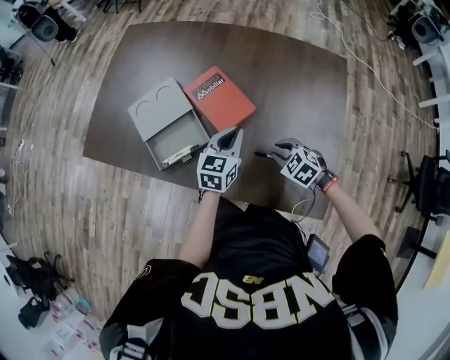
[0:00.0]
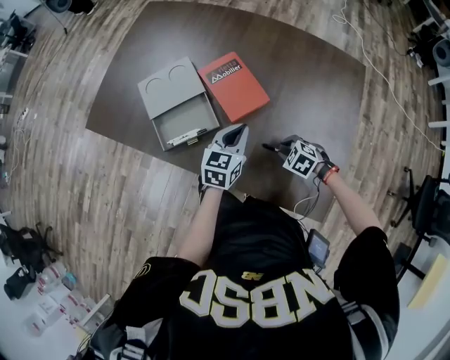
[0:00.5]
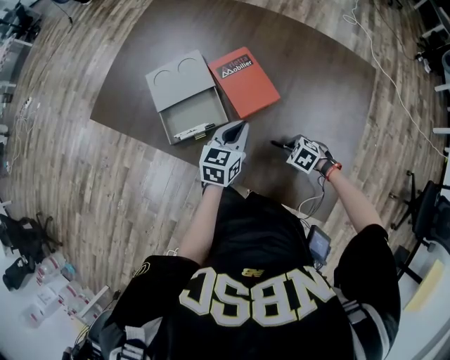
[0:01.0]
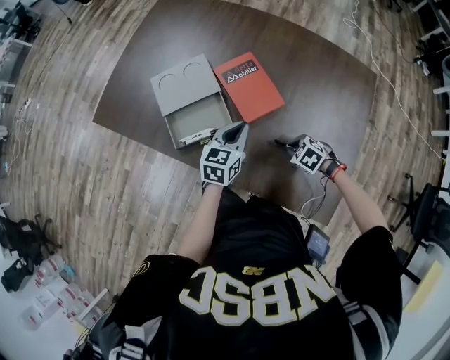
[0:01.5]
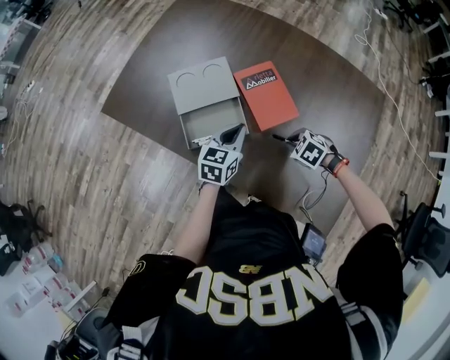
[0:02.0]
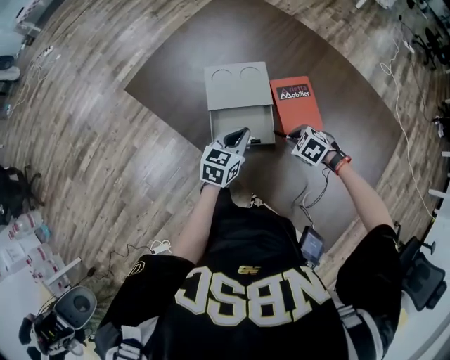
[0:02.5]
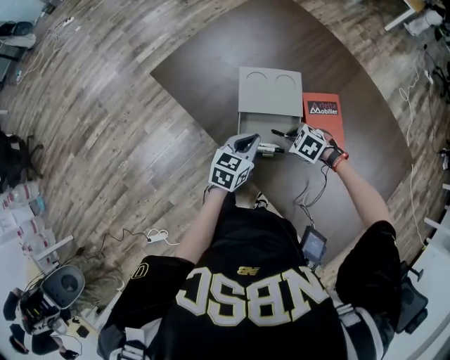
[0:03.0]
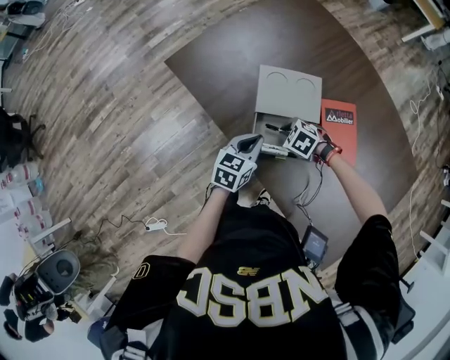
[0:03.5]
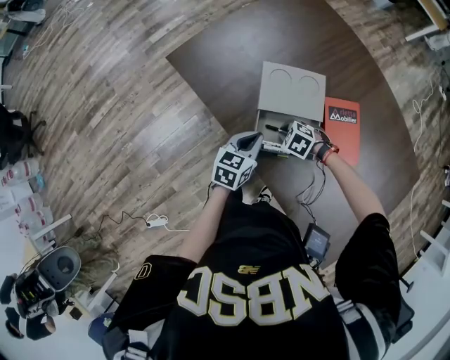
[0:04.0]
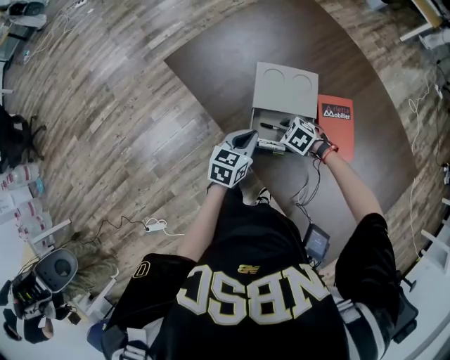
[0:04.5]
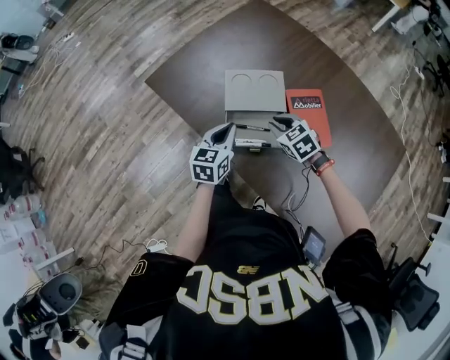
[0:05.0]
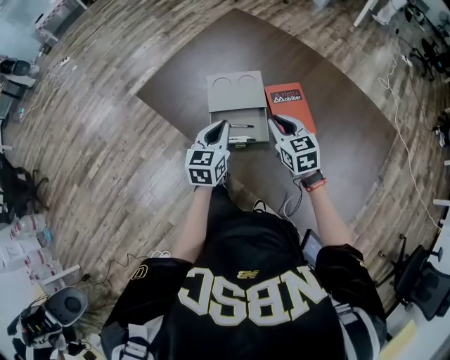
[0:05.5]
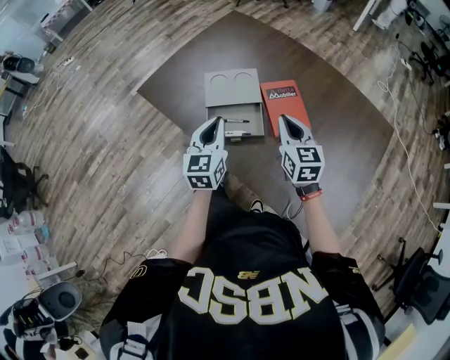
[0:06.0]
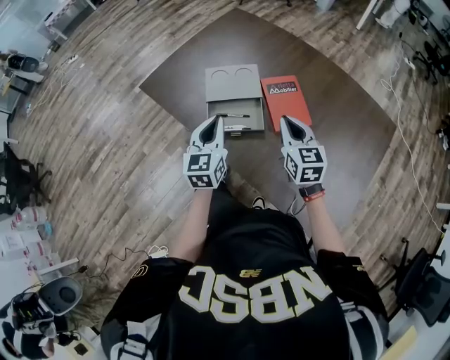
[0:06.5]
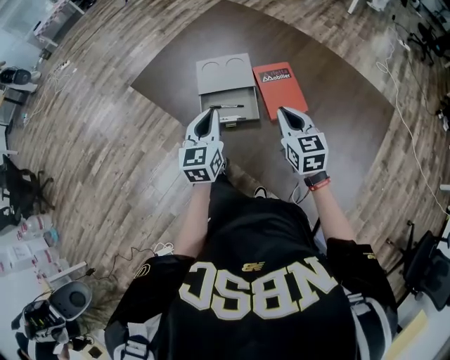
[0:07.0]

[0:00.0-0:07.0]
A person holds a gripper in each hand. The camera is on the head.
0:00.0 to 0:02.0: The right gripper goes downward and returns, about 10 cm each way, and changes its angle by some 20 degrees. Meanwhile the left gripper shifts by roughly 15 cm.
0:02.0 to 0:03.5: The left gripper changes place by some 20 cm; the right gripper shifts by some 30 cm, and turns by about 20 degrees.
0:03.5 to 0:05.0: The right gripper goes approximately 10 cm upward, and turns by about 40 degrees. Meanwhile the left gripper goes approximately 5 cm upward.
0:05.0 to 0:07.0: The left gripper is displaced upward and backward by about 15 cm. The right gripper heads upward, backward and to the right, covering approximately 20 cm, and rotates about 40 degrees.

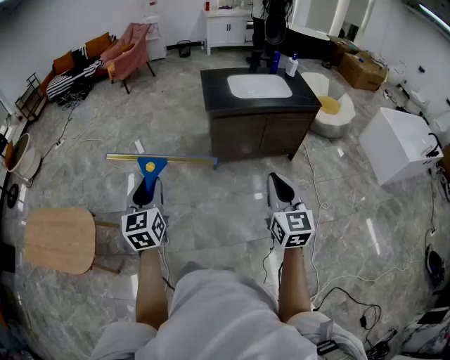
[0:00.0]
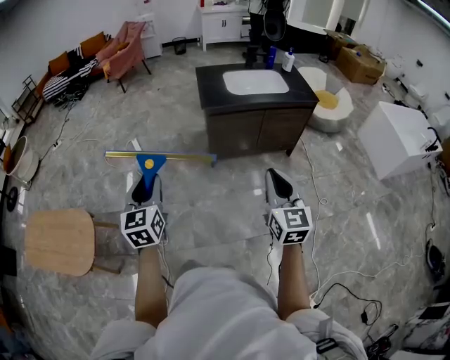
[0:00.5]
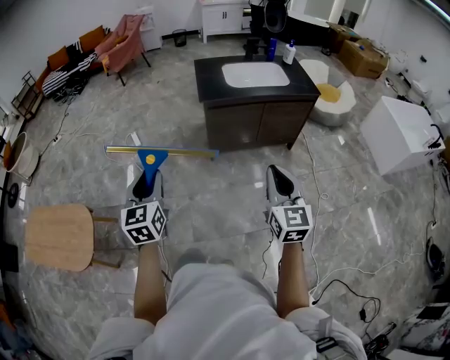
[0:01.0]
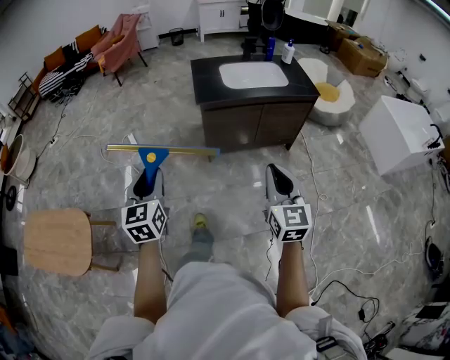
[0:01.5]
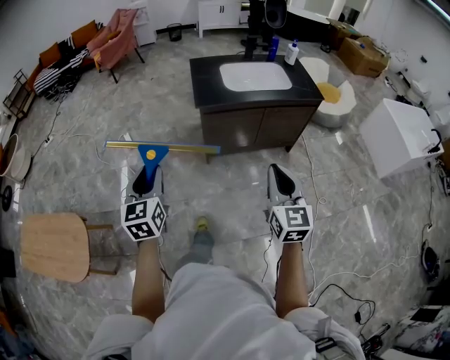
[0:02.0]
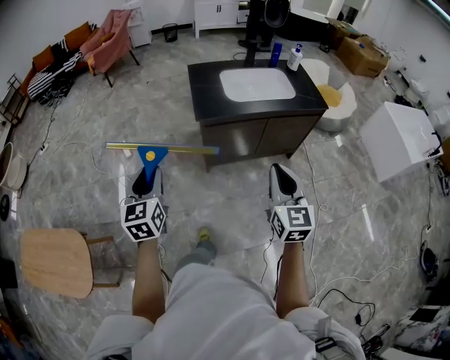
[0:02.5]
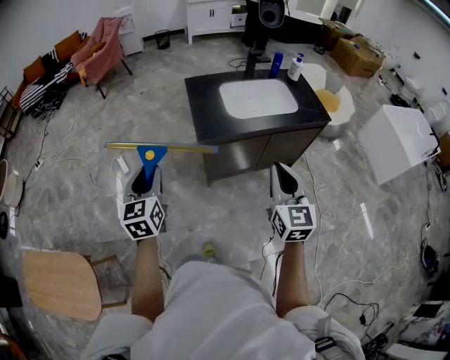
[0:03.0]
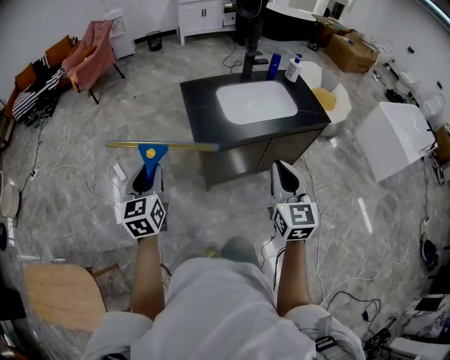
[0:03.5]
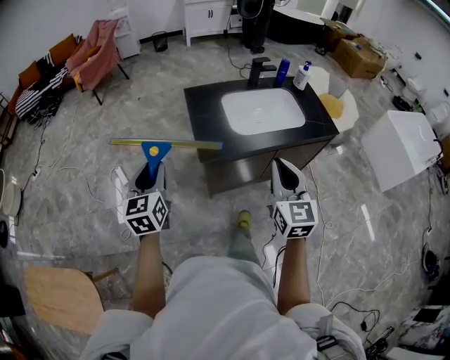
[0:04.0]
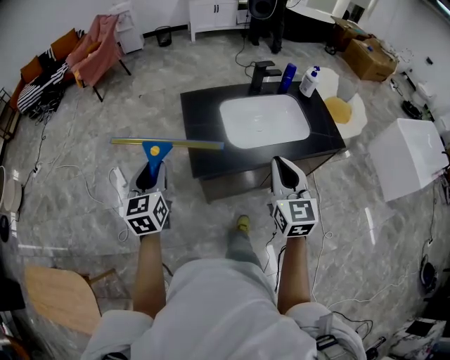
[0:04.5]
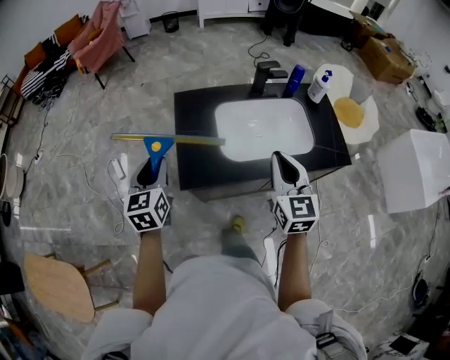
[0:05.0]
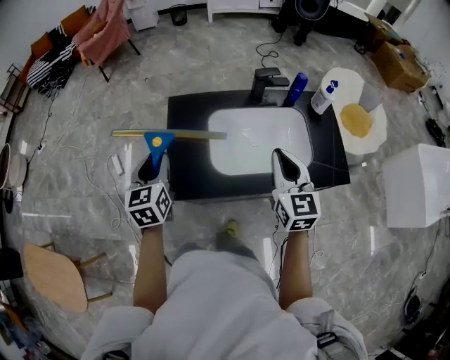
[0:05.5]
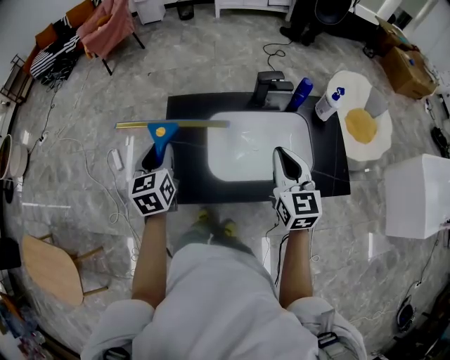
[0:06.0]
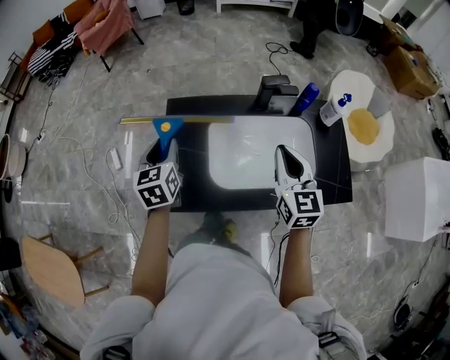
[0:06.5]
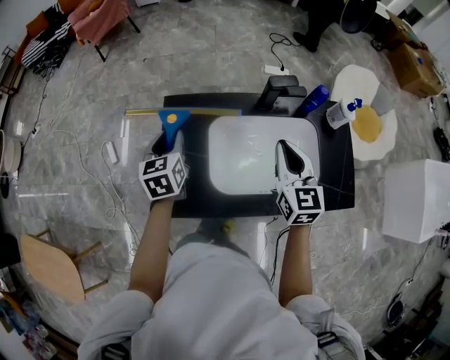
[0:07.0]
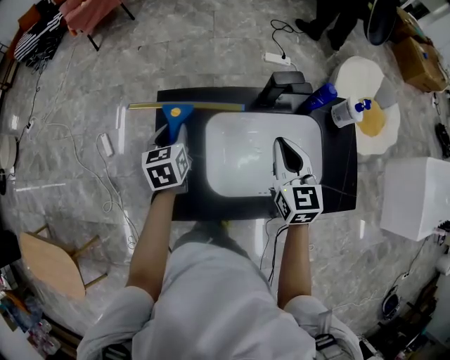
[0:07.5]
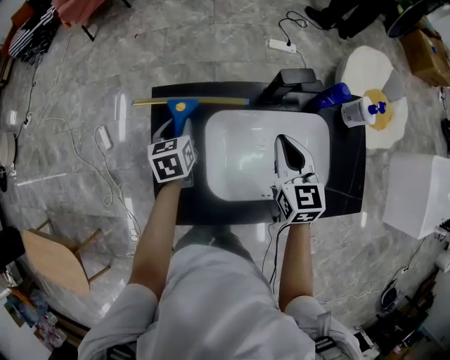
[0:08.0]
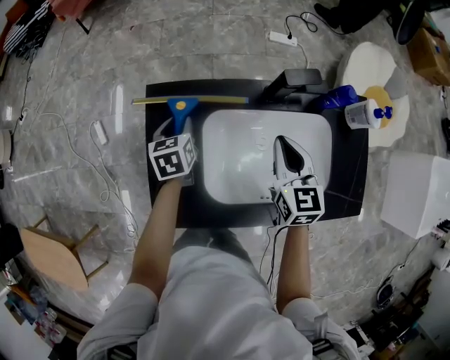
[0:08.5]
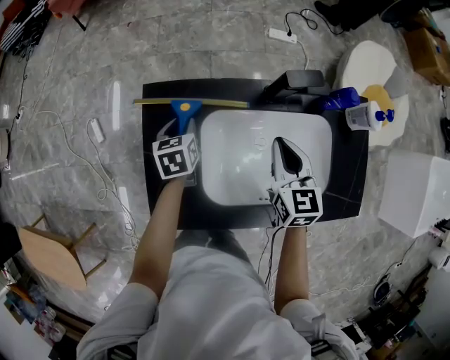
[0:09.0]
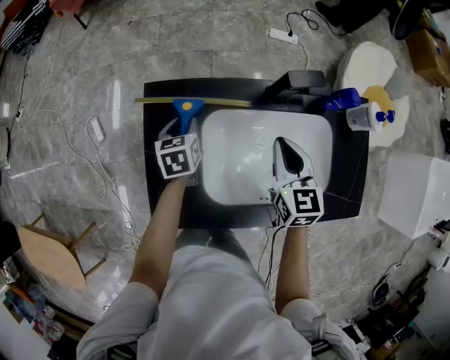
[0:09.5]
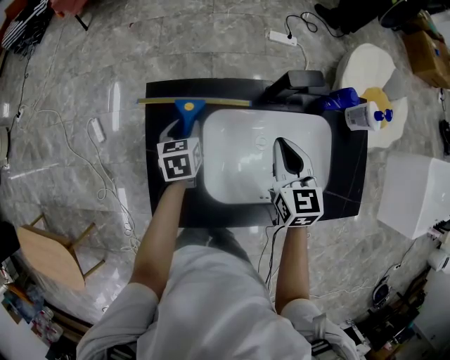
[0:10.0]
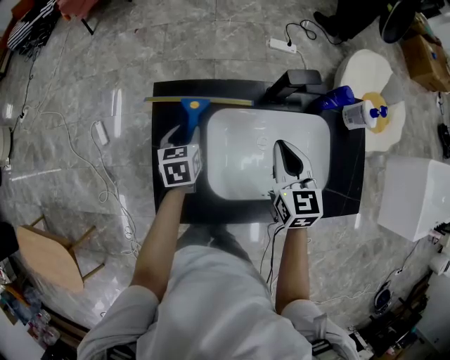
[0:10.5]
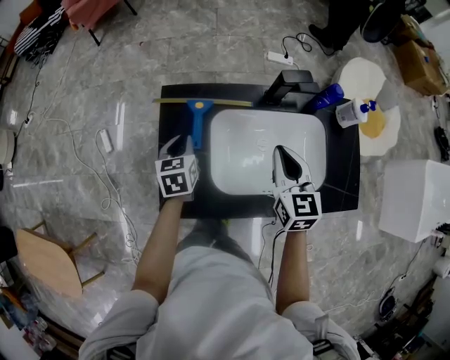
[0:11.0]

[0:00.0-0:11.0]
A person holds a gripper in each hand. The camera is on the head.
0:00.0 to 0:02.0: The two grippers go roughly 10 cm forward.
0:02.0 to 0:03.5: Both grippers travel together forward, some 20 cm.
0:03.5 to 0:05.5: The two grippers go about 30 cm forward and to the right.
0:05.5 to 0:07.5: Both grippers move forward and downward, approximately 20 cm.
0:07.5 to 0:09.0: The left gripper shifts approximately 10 cm downward. Meanwhile the right gripper goes approximately 5 cm downward.
0:09.0 to 0:11.0: Both grippers move backward and upward, some 10 cm. The left gripper closes its fingers.

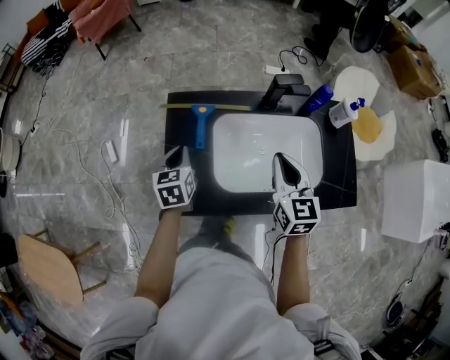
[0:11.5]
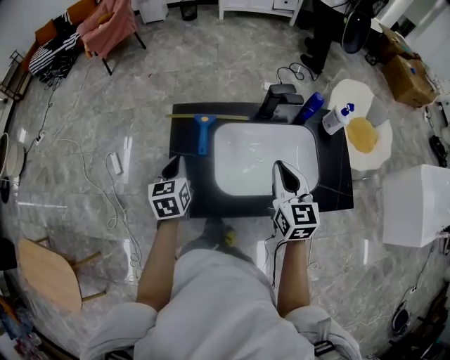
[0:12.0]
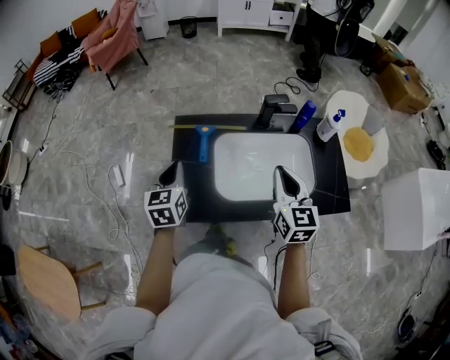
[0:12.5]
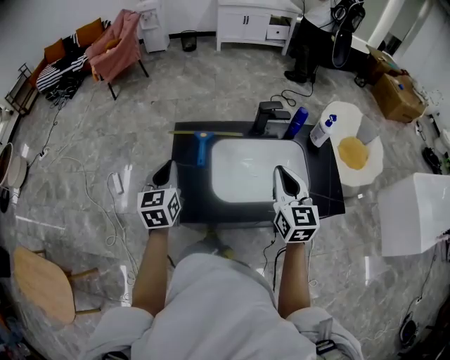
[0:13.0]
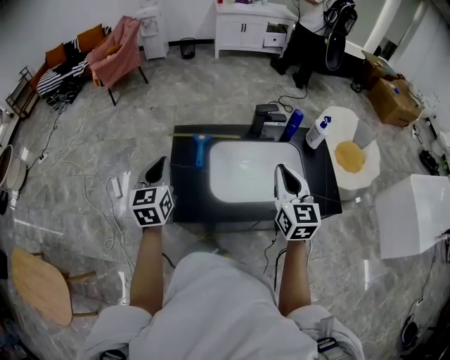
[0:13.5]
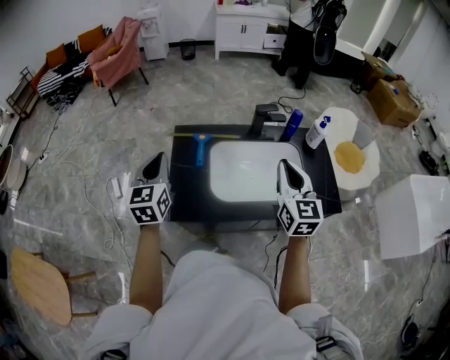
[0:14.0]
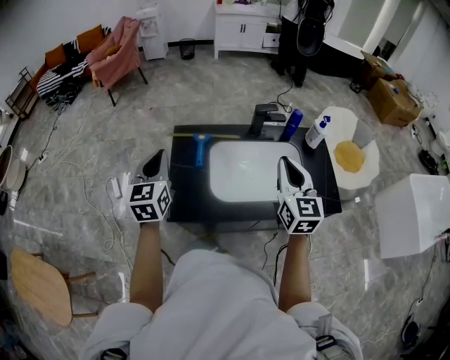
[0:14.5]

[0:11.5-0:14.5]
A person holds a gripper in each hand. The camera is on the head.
0:11.5 to 0:13.0: The right gripper is displaced upward and backward by about 10 cm, while the left gripper goes some 15 cm upward and backward.
0:13.0 to 0:14.5: The left gripper heads upward, covering roughly 5 cm.

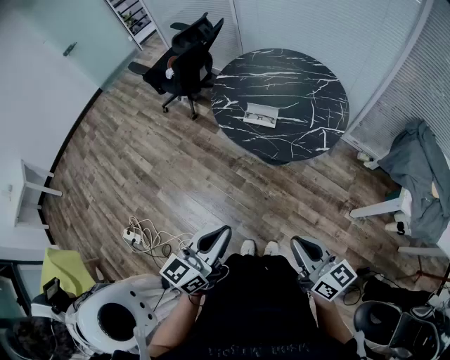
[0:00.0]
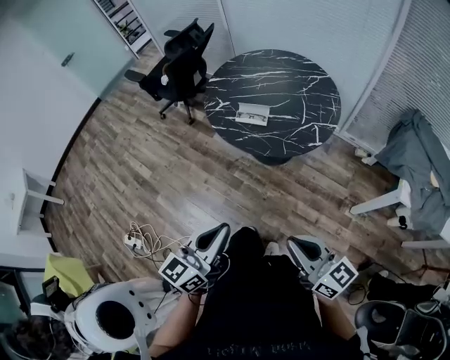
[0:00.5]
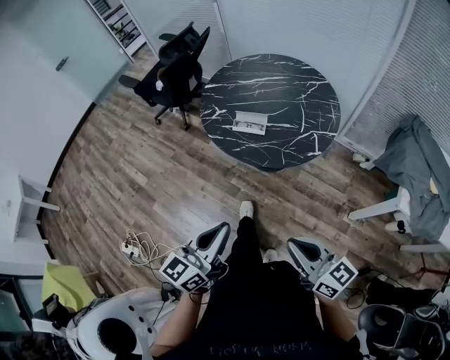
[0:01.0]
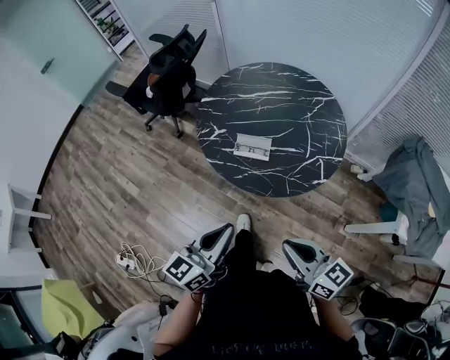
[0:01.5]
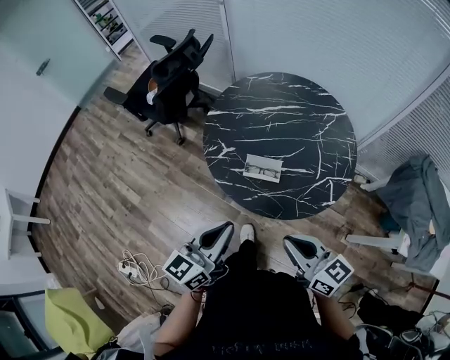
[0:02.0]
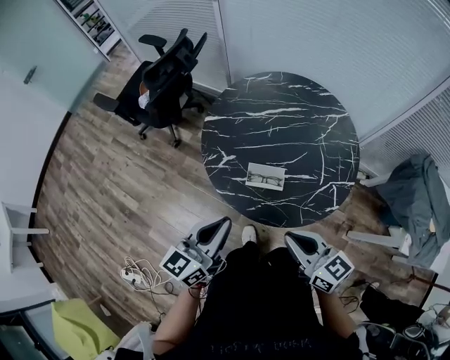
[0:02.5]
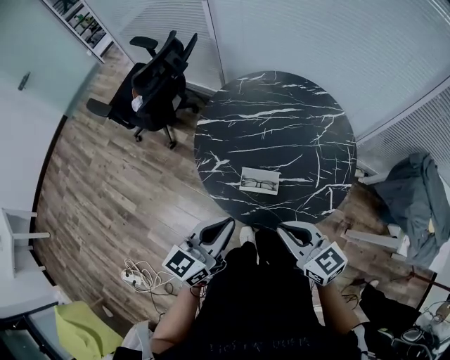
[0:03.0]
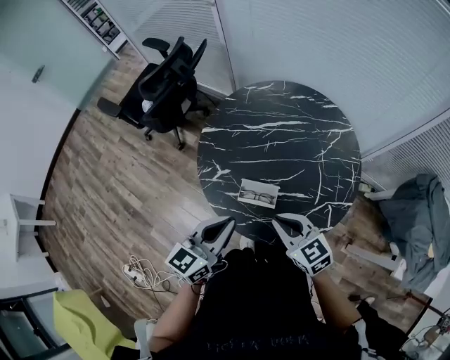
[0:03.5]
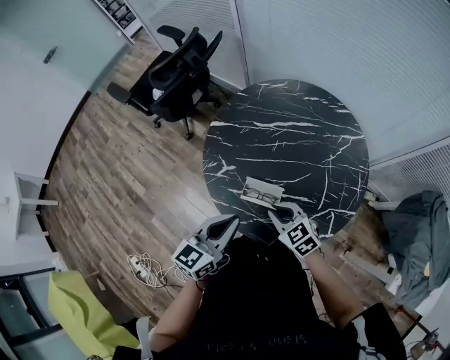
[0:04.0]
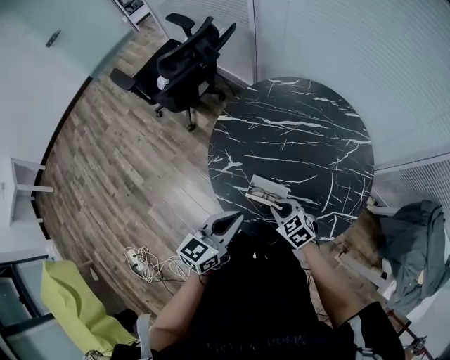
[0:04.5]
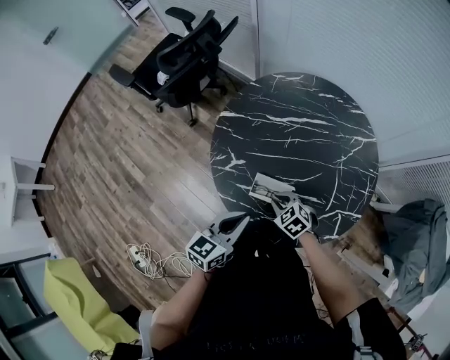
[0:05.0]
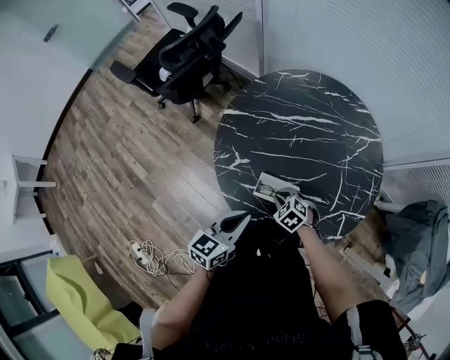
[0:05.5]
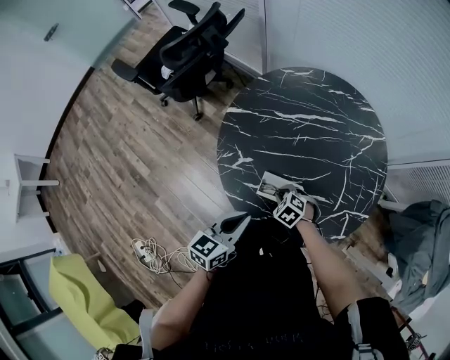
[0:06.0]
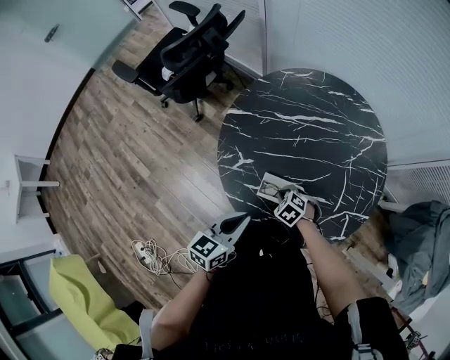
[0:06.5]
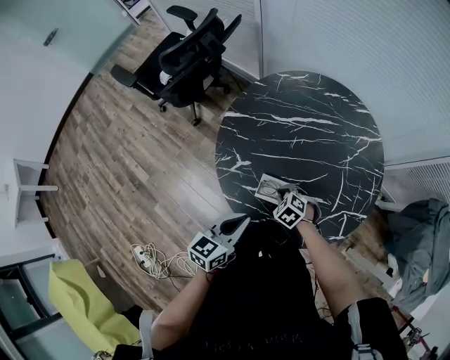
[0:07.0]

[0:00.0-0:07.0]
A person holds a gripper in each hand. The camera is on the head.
0:00.0 to 0:02.0: The two grippers go approximately 30 cm forward.
0:02.0 to 0:03.5: The right gripper goes about 20 cm forward and downward, and rotates about 20 degrees. Meanwhile the left gripper heads forward, covering about 15 cm.
0:03.5 to 0:05.0: The right gripper travels downward by approximately 20 cm, and changes its angle by roughly 30 degrees; the left gripper shifts roughly 10 cm downward.
0:05.0 to 0:07.0: The right gripper shifts by some 5 cm.
